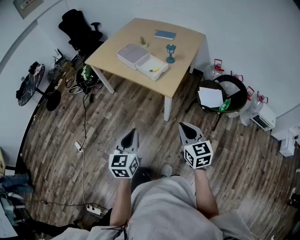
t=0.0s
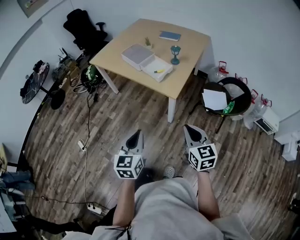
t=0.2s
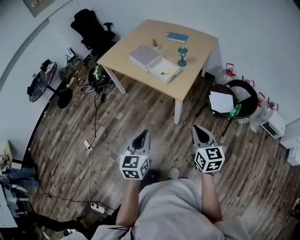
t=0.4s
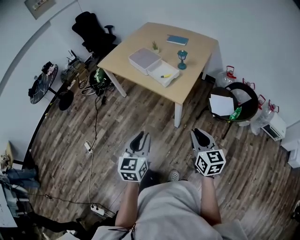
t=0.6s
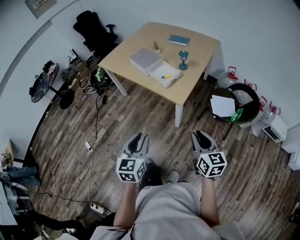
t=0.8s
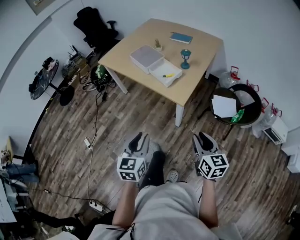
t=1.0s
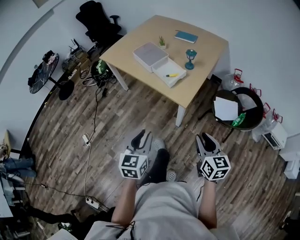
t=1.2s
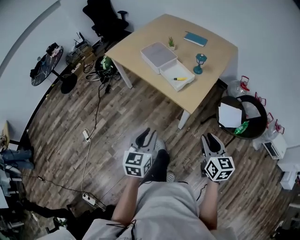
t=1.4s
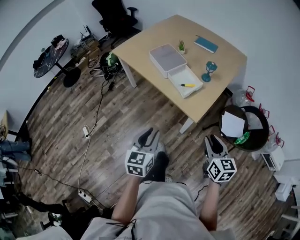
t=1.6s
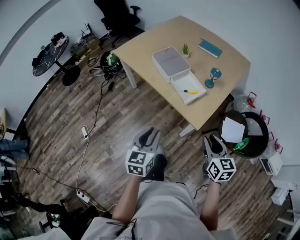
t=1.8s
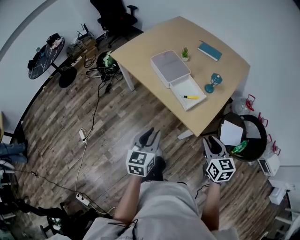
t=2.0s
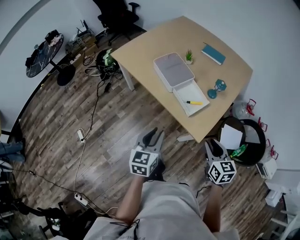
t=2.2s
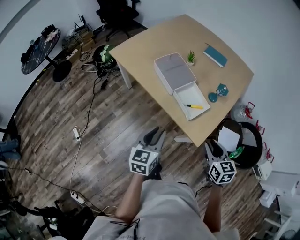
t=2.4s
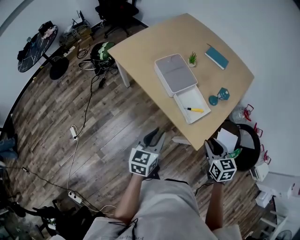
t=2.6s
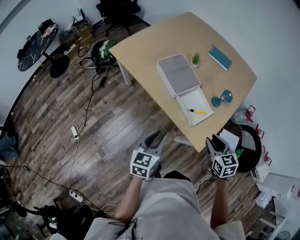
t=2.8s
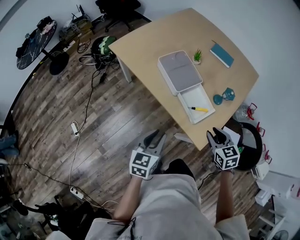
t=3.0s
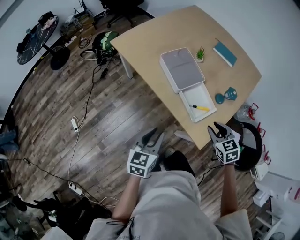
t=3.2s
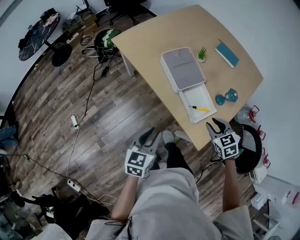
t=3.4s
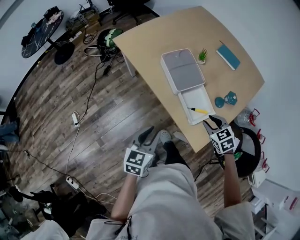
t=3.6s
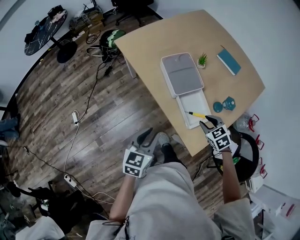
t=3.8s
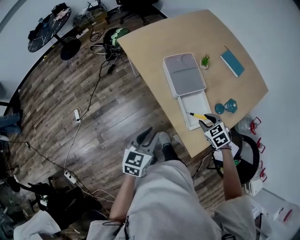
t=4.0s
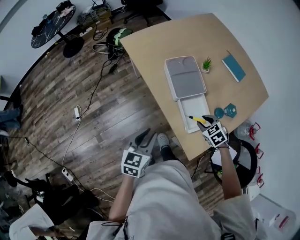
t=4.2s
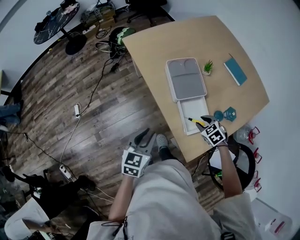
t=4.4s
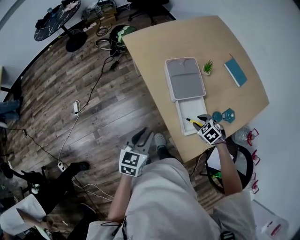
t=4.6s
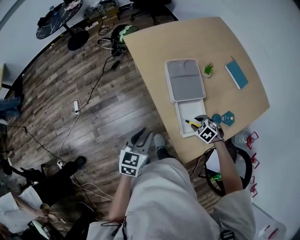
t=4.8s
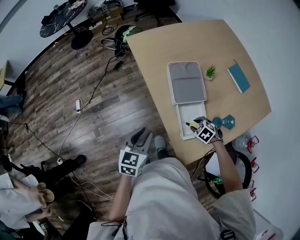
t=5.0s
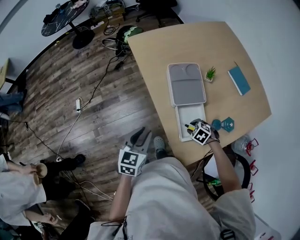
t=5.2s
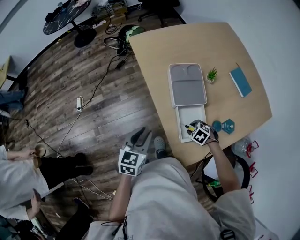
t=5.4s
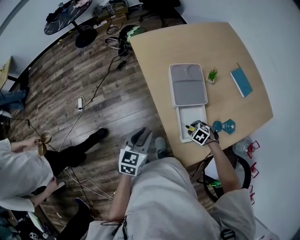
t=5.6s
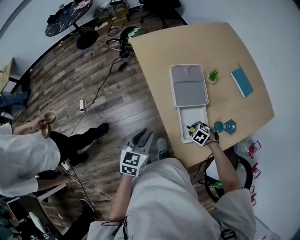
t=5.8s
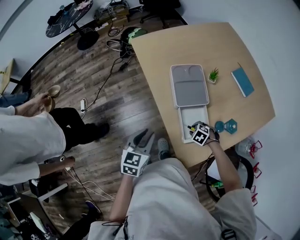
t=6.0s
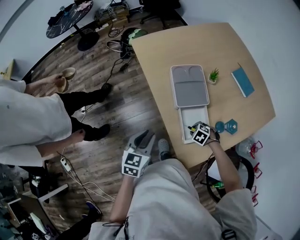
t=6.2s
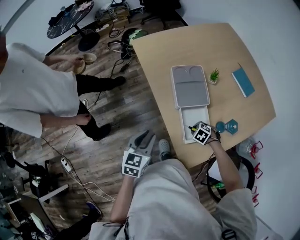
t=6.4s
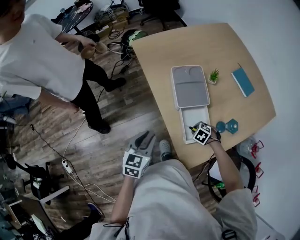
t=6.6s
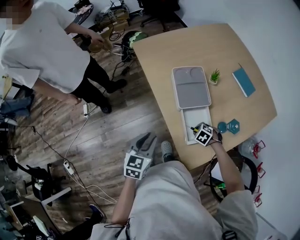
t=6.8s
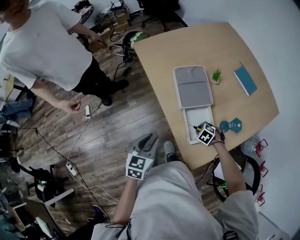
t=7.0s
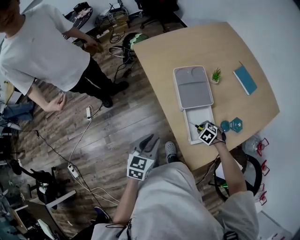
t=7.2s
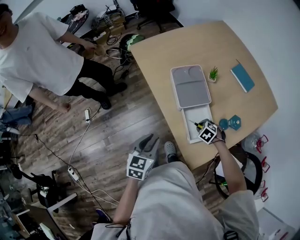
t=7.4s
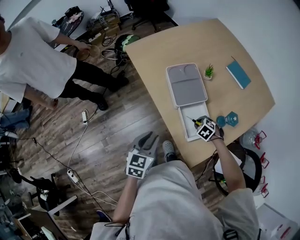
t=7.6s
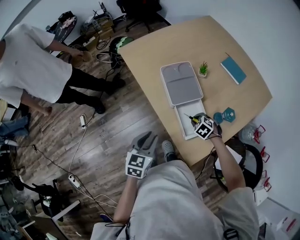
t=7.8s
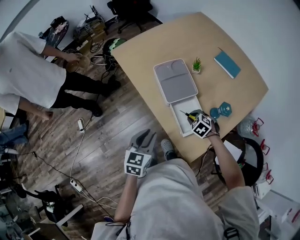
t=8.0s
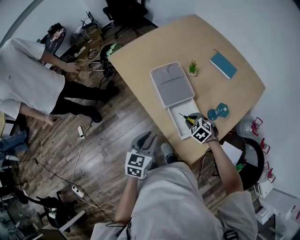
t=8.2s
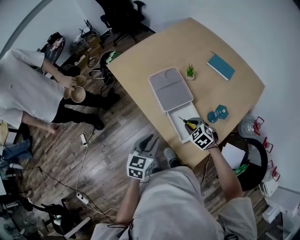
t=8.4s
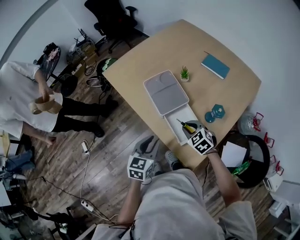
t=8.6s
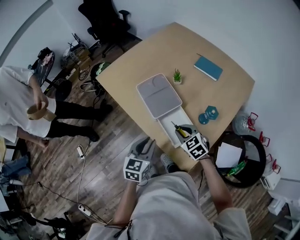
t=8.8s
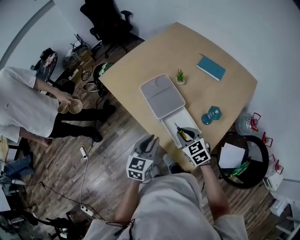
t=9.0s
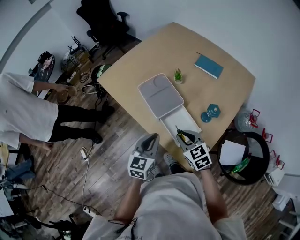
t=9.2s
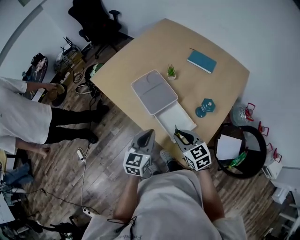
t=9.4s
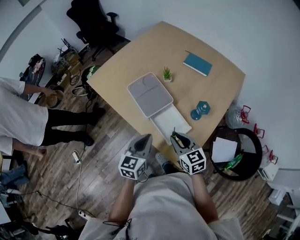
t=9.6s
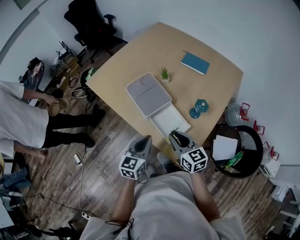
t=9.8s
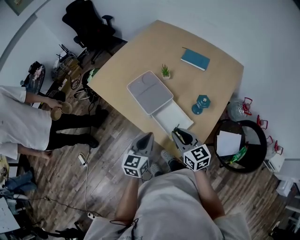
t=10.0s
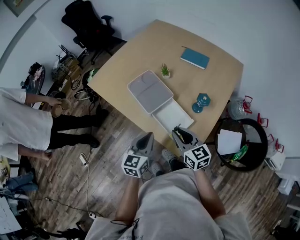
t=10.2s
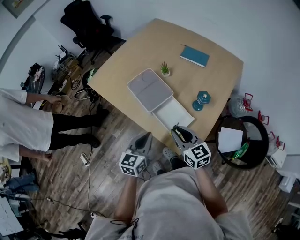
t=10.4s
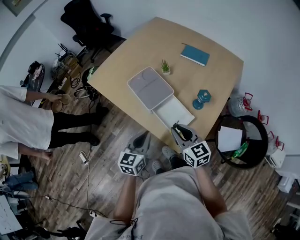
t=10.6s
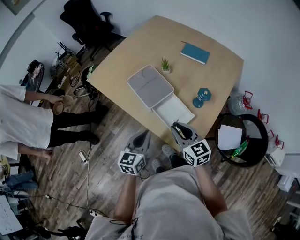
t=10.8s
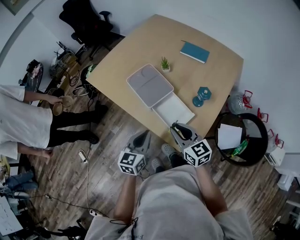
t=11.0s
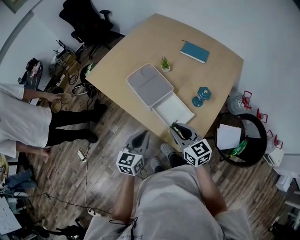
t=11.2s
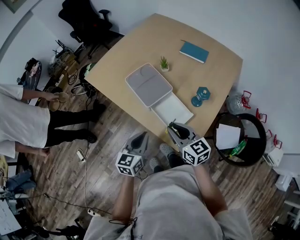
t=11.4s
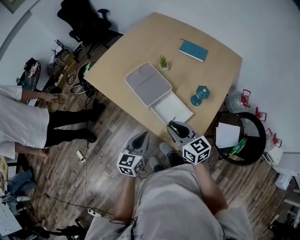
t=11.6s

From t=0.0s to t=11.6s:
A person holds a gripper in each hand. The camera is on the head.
From t=0.0s to t=1.4s: The right gripper goes about 10 cm forward and to the right, and opens up; the left gripper travels forward by about 10 cm, and opens its fingers.
From t=1.4s to t=2.8s: Both grippers move forward, about 30 cm. The right gripper rotates roughly 30 degrees.
From t=2.8s to t=4.4s: The right gripper changes place by approximately 20 cm, and swivels approximately 50 degrees.
From t=4.4s to t=5.8s: The right gripper travels downward by about 10 cm, and changes its angle by about 30 degrees.
From t=5.8s to t=7.2s: The grippers move only a little.
From t=7.2s to t=8.8s: The right gripper shifts approximately 15 cm upward, and tilts its fingers some 30 degrees upward; the left gripper shifts by roughly 10 cm.
From t=8.8s to t=10.2s: The right gripper shifts roughly 10 cm upward and backward, and swivels about 40 degrees.
From t=10.2s to t=11.6s: The grippers move only a little.

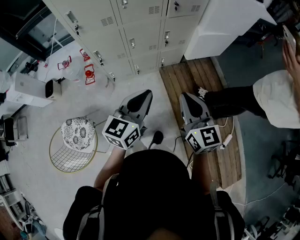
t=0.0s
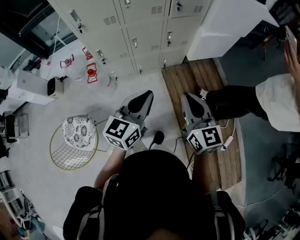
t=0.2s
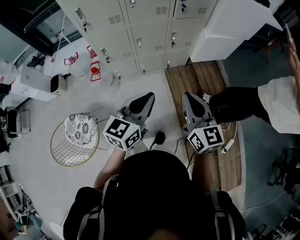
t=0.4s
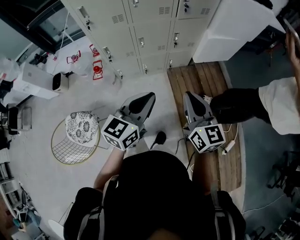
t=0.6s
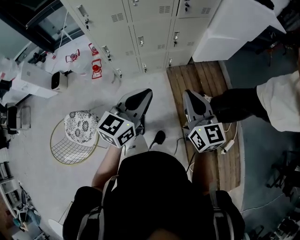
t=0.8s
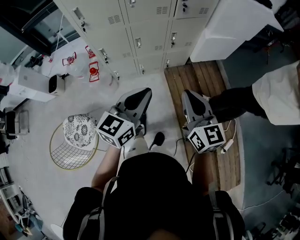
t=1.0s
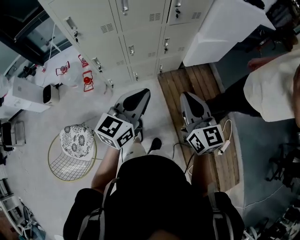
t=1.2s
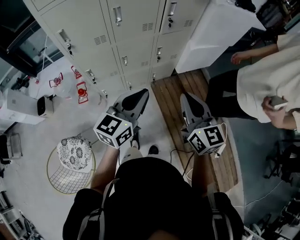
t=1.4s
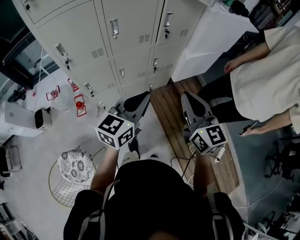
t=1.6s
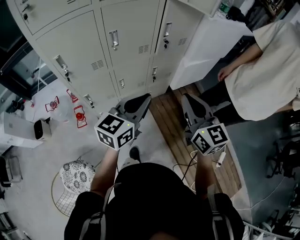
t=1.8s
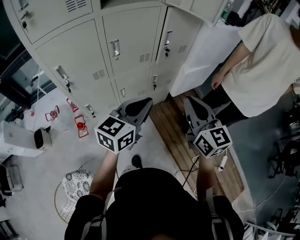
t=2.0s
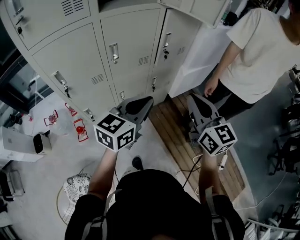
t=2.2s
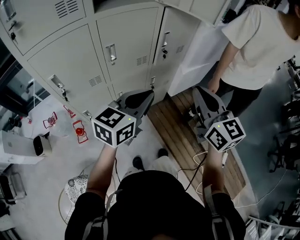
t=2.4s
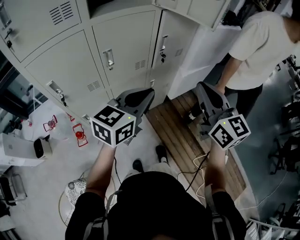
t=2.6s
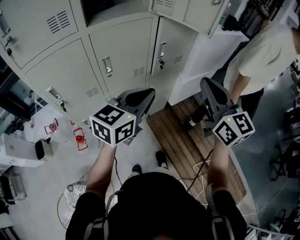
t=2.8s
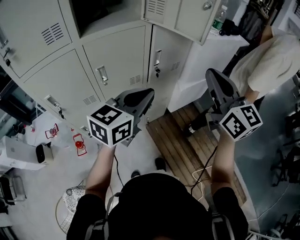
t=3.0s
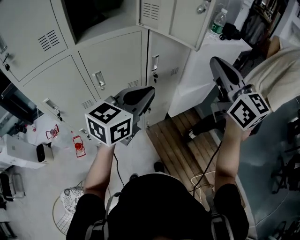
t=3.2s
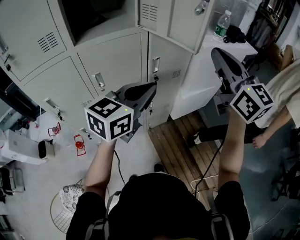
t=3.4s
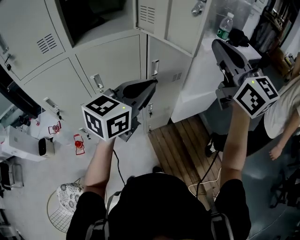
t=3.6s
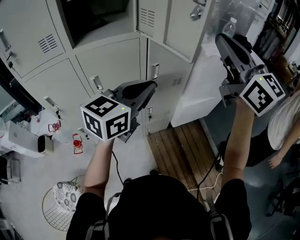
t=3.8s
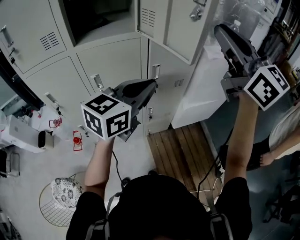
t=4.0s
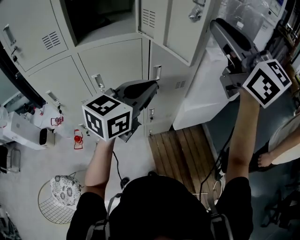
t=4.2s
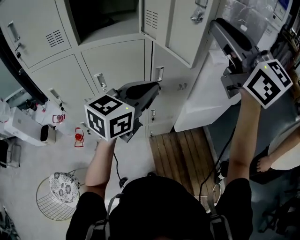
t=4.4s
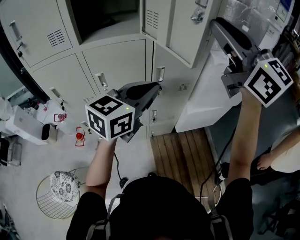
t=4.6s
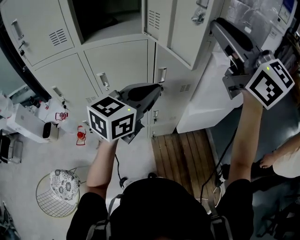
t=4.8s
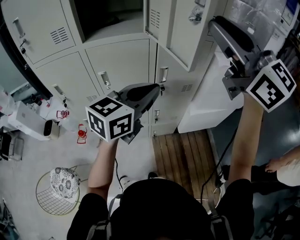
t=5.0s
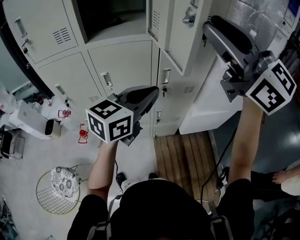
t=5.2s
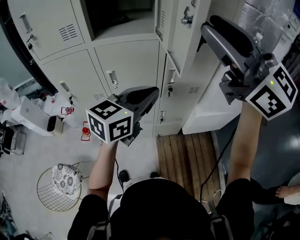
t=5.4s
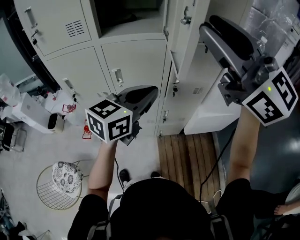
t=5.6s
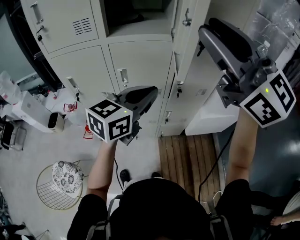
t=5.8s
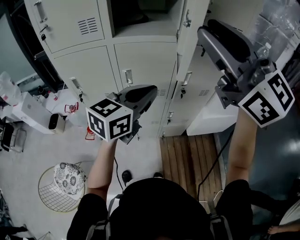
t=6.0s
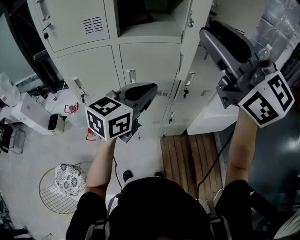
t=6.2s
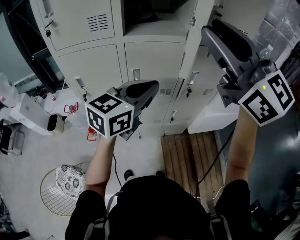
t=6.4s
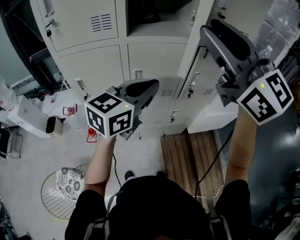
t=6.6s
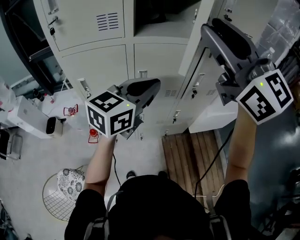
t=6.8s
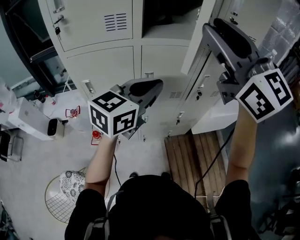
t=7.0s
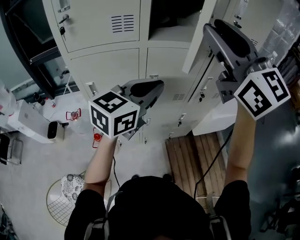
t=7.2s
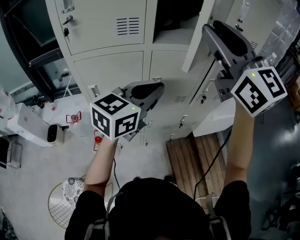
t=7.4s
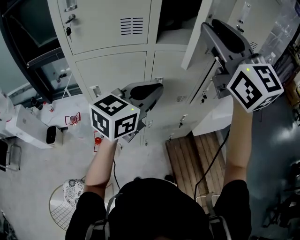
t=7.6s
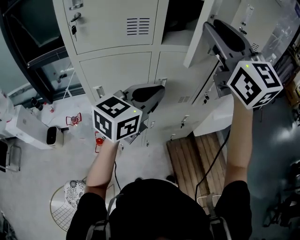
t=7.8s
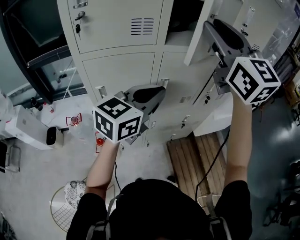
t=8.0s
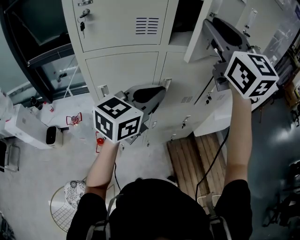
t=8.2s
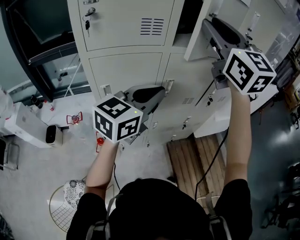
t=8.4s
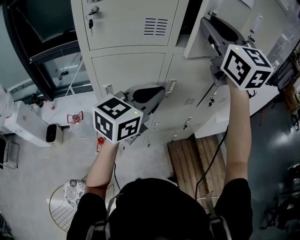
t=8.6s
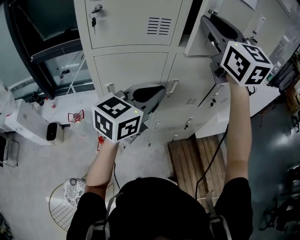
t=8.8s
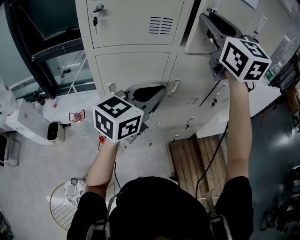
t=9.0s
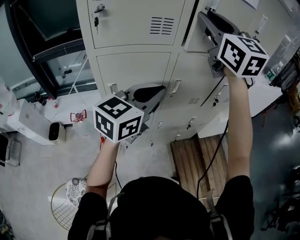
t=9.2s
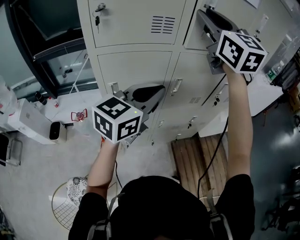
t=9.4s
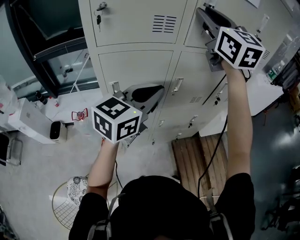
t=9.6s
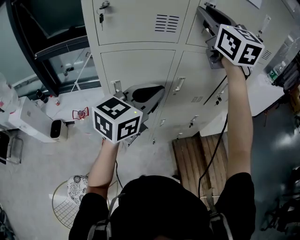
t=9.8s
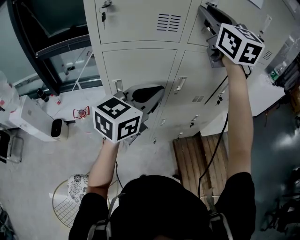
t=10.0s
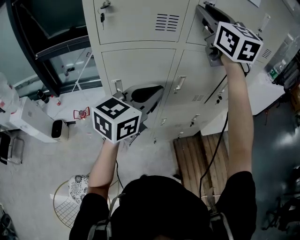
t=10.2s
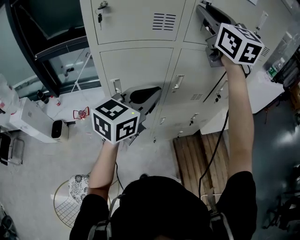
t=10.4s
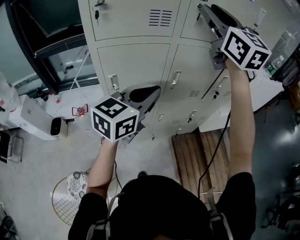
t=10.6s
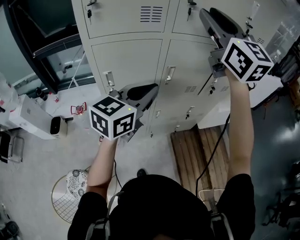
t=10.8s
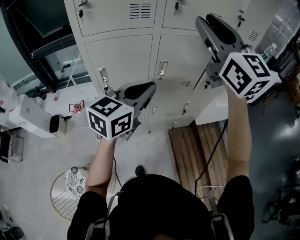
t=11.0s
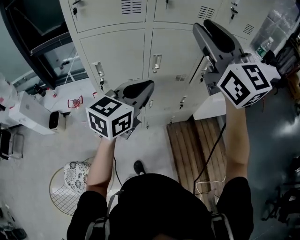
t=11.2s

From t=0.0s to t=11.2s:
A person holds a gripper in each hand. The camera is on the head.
From t=0.0s to t=1.6s: The grippers both shift forward and upward by roughly 15 cm.
From t=1.6s to t=3.2s: The two grippers go about 30 cm forward and upward.
From t=3.2s to t=4.8s: The left gripper travels to the right and forward by roughly 10 cm. Meanwhile the right gripper goes some 15 cm upward and forward, and swivels some 30 degrees.
From t=4.8s to t=6.4s: Both grippers move to the left, about 20 cm.
From t=6.4s to t=8.0s: The left gripper travels to the left by approximately 15 cm; the right gripper shifts some 15 cm to the left and forward.
From t=8.0s to t=9.6s: The left gripper moves to the left, some 5 cm. The right gripper goes approximately 10 cm to the left and forward.
From t=9.6s to t=11.2s: The left gripper heads to the right and backward, covering approximately 10 cm. The right gripper is displaced backward and to the right by approximately 20 cm.

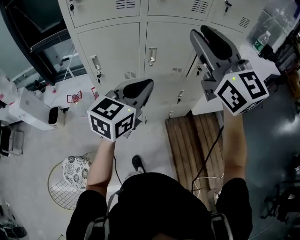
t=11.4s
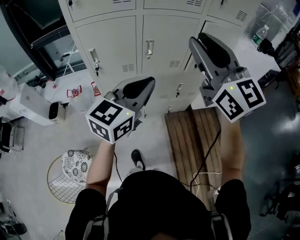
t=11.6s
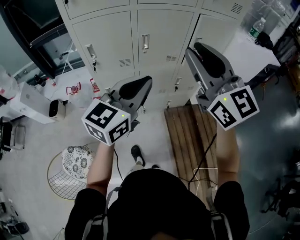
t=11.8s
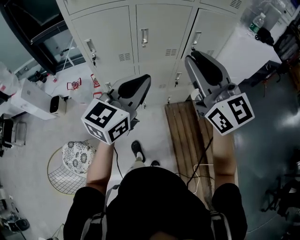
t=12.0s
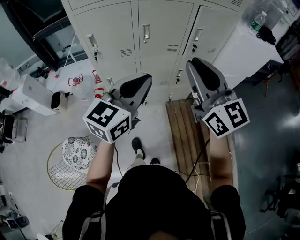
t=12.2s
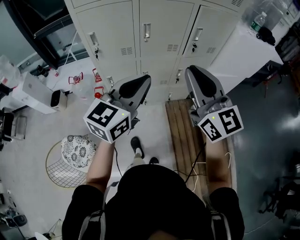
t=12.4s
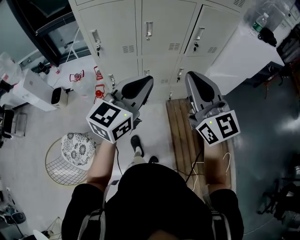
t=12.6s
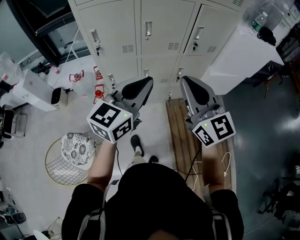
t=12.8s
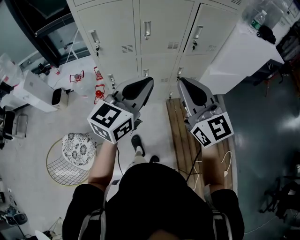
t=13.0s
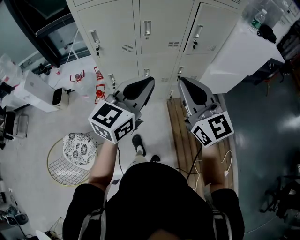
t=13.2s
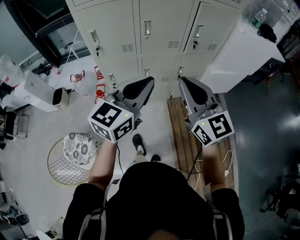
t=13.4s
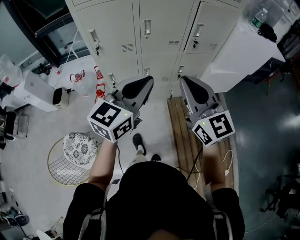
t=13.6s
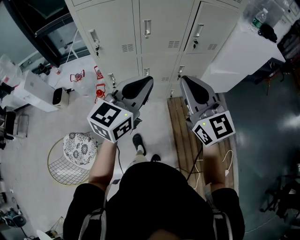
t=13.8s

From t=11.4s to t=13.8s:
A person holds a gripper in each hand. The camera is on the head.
From t=11.4s to t=12.6s: The left gripper shifts about 10 cm backward. The right gripper moves downward and backward, some 20 cm, and closes.
From t=12.6s to t=13.8s: The grippers make only small movements.
